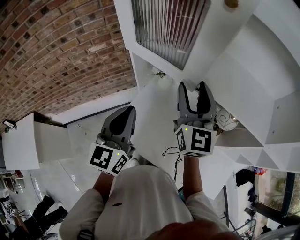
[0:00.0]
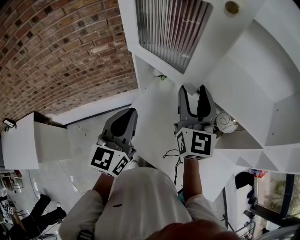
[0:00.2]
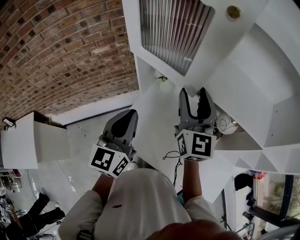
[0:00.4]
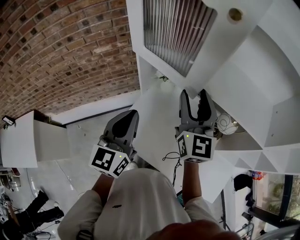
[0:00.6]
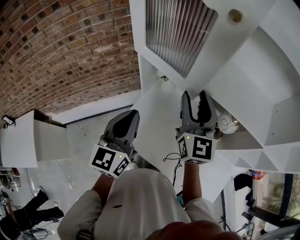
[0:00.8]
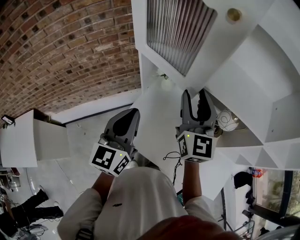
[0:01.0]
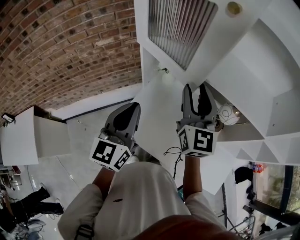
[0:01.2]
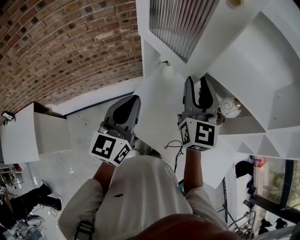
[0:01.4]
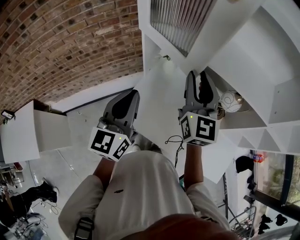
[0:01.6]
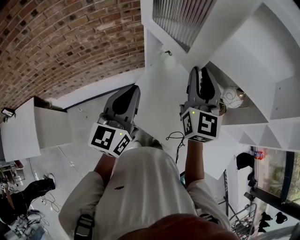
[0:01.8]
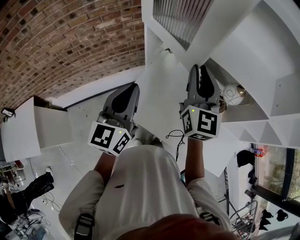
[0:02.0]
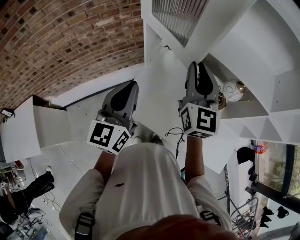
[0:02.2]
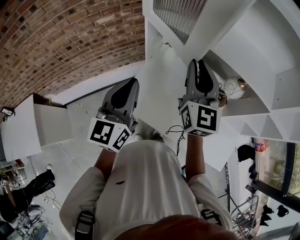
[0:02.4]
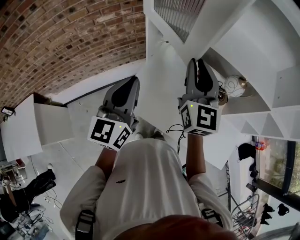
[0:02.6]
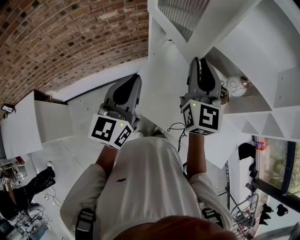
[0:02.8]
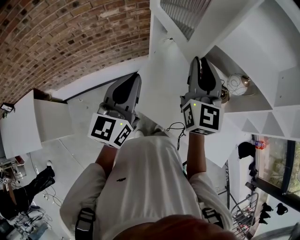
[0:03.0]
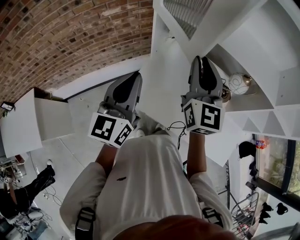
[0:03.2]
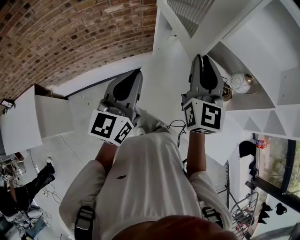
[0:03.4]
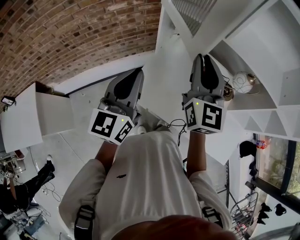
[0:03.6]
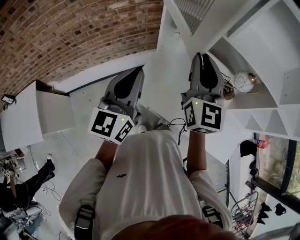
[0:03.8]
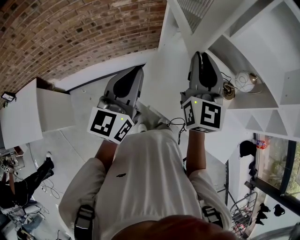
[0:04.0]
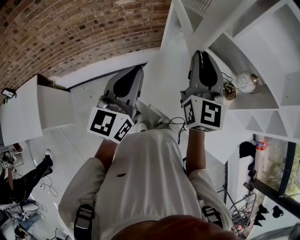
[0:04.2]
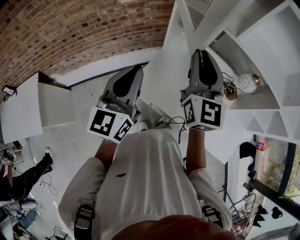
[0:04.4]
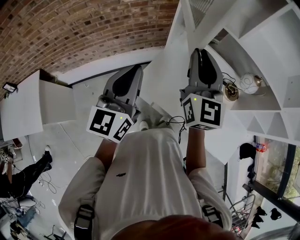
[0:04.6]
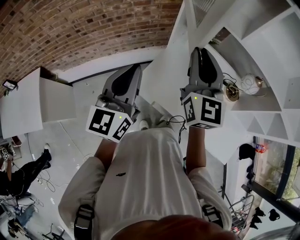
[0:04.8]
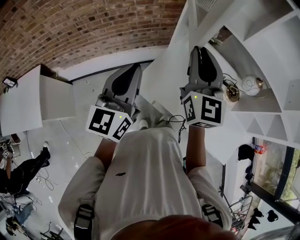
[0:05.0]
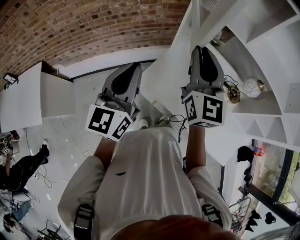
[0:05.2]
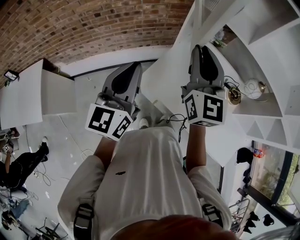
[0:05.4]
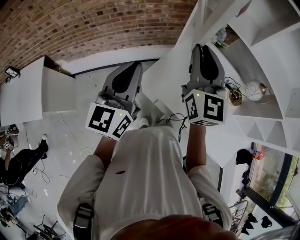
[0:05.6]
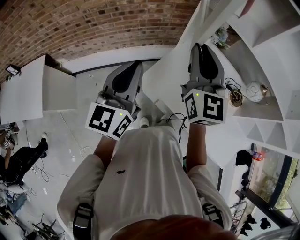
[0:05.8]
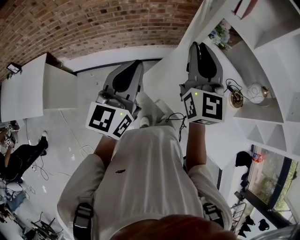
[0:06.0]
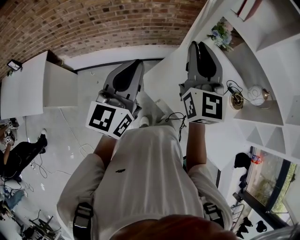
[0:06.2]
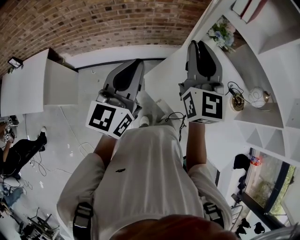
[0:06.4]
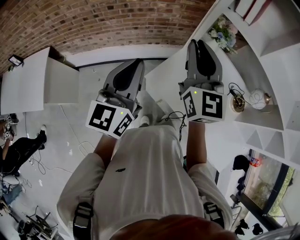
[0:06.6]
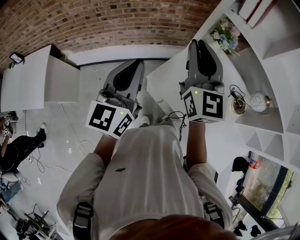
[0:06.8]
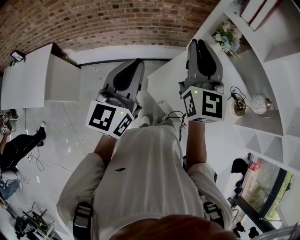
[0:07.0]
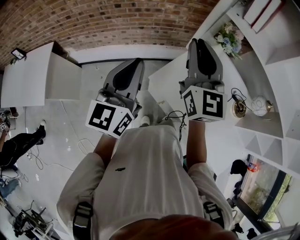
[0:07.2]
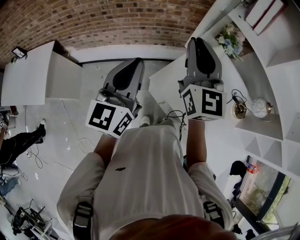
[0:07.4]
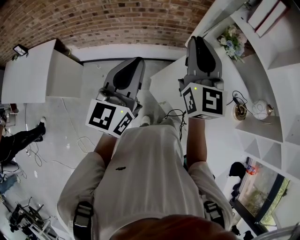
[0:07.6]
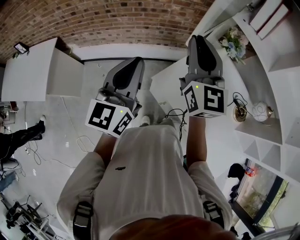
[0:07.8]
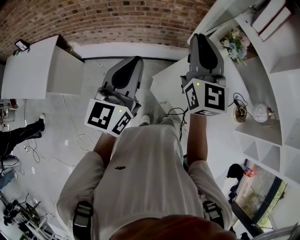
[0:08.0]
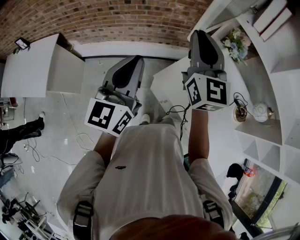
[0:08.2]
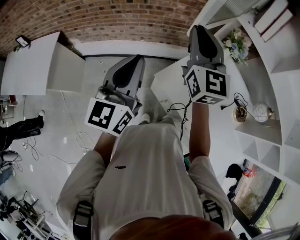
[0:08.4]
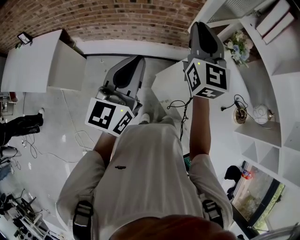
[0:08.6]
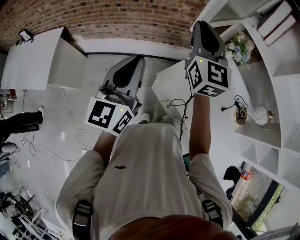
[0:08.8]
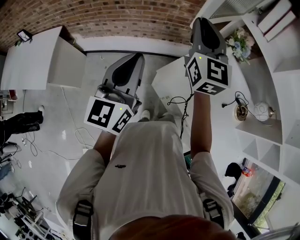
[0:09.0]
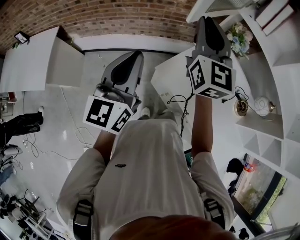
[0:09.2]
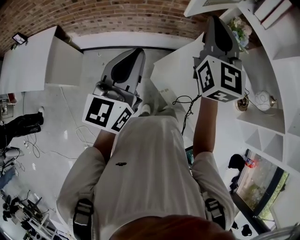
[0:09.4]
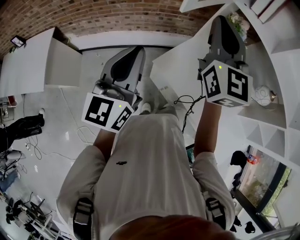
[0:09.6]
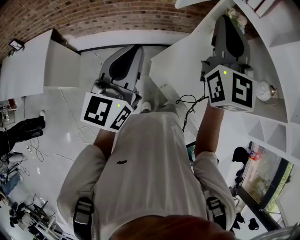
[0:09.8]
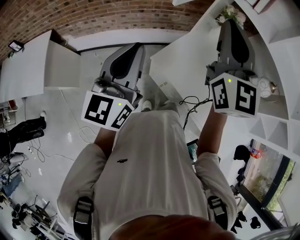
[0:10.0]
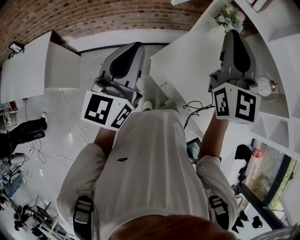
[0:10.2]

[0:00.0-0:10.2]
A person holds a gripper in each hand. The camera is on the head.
0:00.0 to 0:01.4: The right gripper ends up some 5 cm from where it was.
0:01.4 to 0:03.0: The right gripper shifts roughly 5 cm backward, and closes its fingers, while the left gripper ends up some 5 cm from where it was.
0:03.0 to 0:04.4: The right gripper goes some 5 cm to the left. The left gripper goes some 10 cm to the left and backward.
0:04.4 to 0:05.8: The grippers both shift to the left by approximately 5 cm.
0:05.8 to 0:07.2: The right gripper shifts approximately 5 cm to the left.
0:07.2 to 0:08.8: The right gripper heads to the left and forward, covering some 10 cm. Meanwhile the left gripper shifts by about 5 cm.
0:08.8 to 0:10.2: The left gripper moves approximately 5 cm, while the right gripper is displaced backward and to the right by approximately 15 cm.

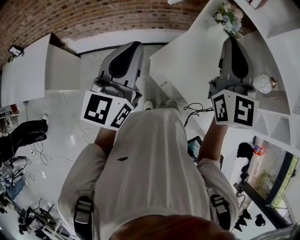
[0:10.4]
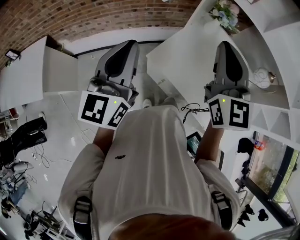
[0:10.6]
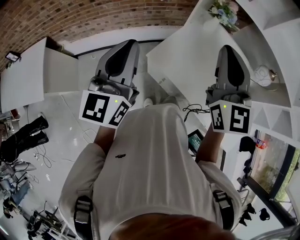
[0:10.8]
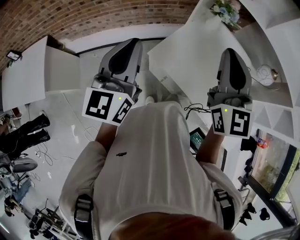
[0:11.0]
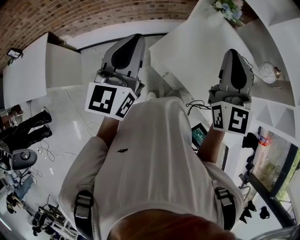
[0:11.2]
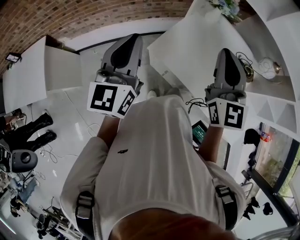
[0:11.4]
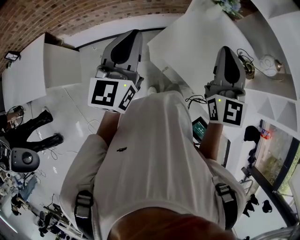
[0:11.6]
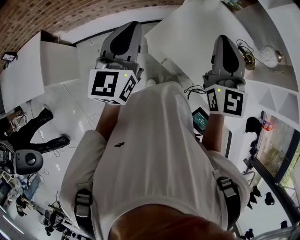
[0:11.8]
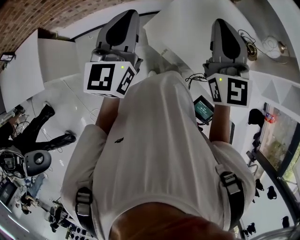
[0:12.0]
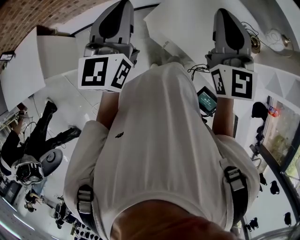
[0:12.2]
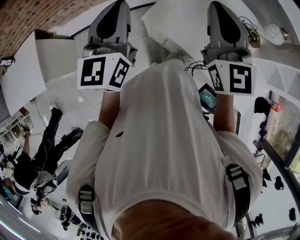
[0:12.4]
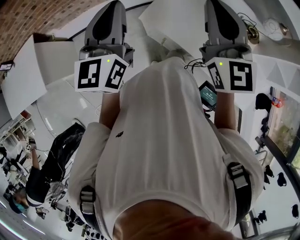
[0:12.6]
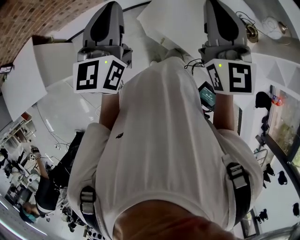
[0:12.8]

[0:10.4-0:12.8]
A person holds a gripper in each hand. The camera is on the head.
0:10.4 to 0:11.6: The left gripper moves approximately 5 cm. Meanwhile the right gripper is displaced downward by some 10 cm.
0:11.6 to 0:12.8: The grippers move only a little.

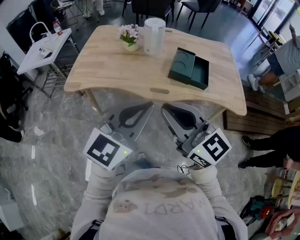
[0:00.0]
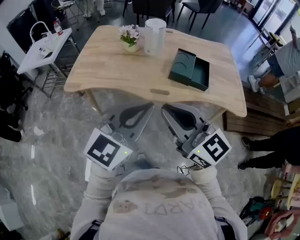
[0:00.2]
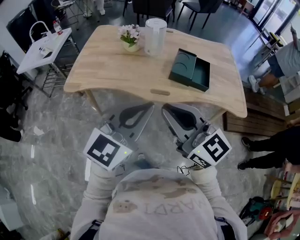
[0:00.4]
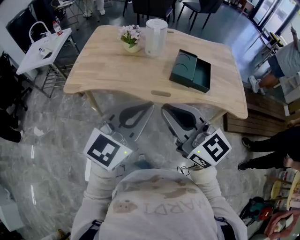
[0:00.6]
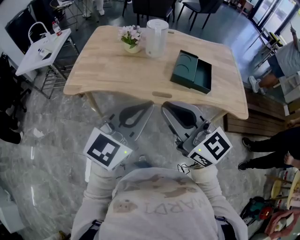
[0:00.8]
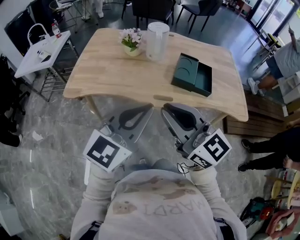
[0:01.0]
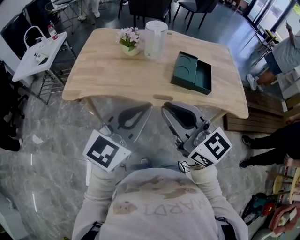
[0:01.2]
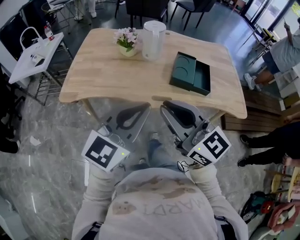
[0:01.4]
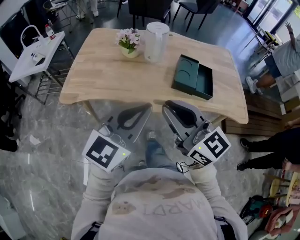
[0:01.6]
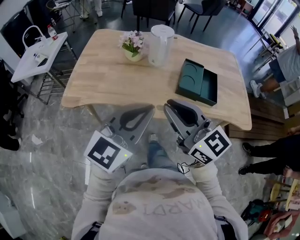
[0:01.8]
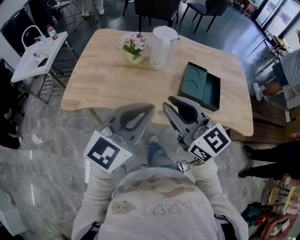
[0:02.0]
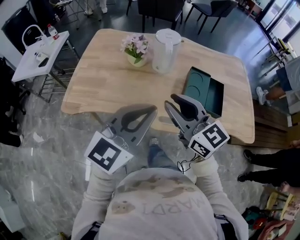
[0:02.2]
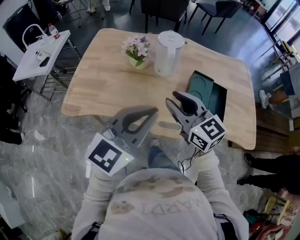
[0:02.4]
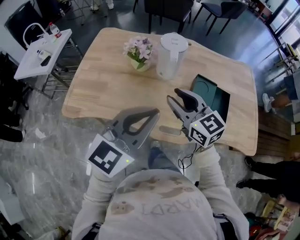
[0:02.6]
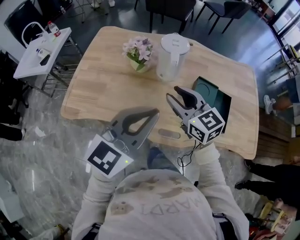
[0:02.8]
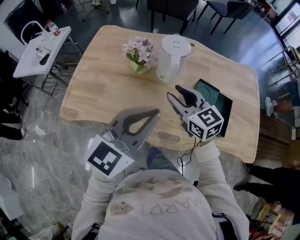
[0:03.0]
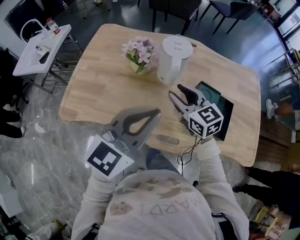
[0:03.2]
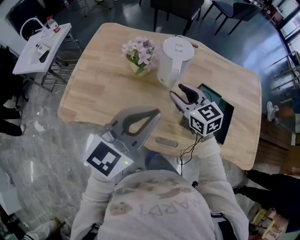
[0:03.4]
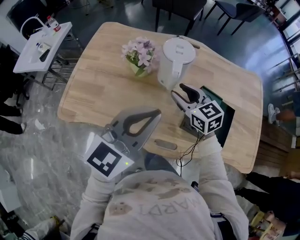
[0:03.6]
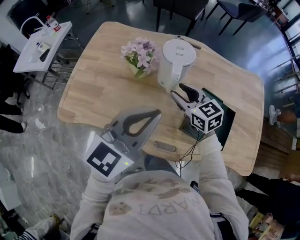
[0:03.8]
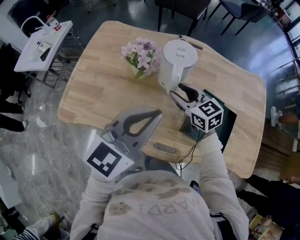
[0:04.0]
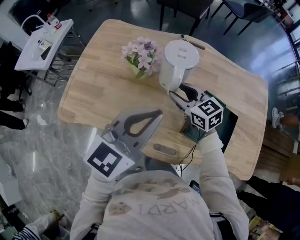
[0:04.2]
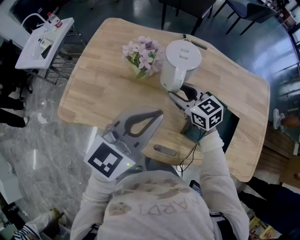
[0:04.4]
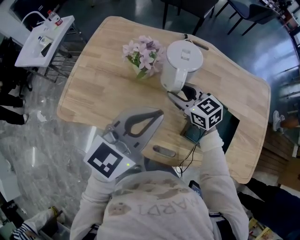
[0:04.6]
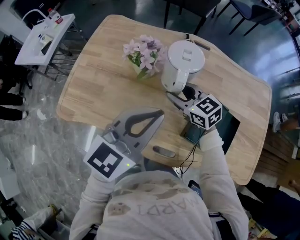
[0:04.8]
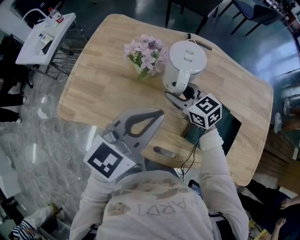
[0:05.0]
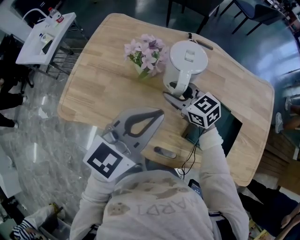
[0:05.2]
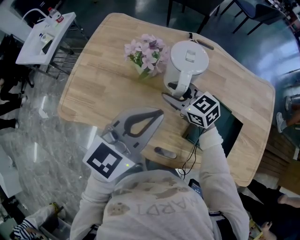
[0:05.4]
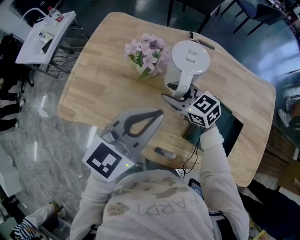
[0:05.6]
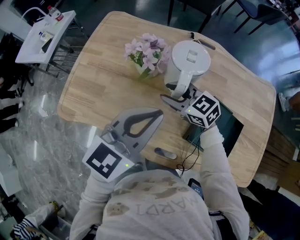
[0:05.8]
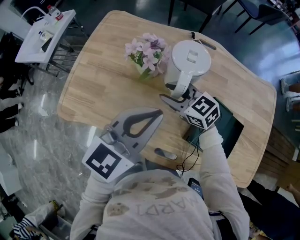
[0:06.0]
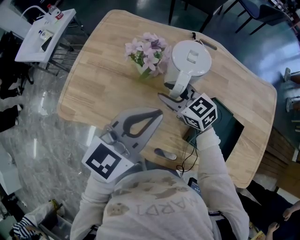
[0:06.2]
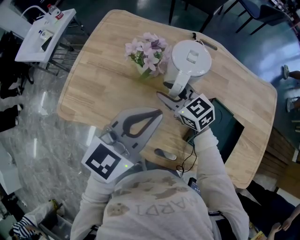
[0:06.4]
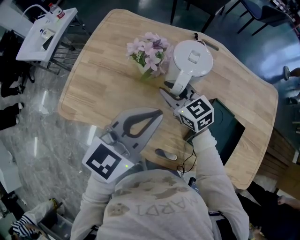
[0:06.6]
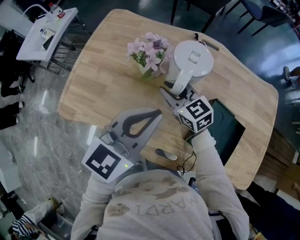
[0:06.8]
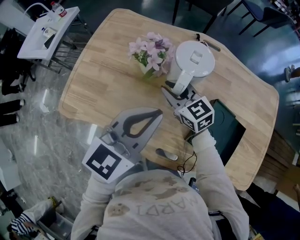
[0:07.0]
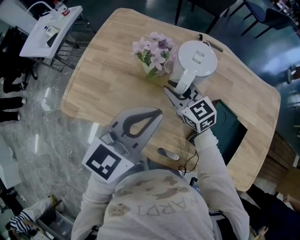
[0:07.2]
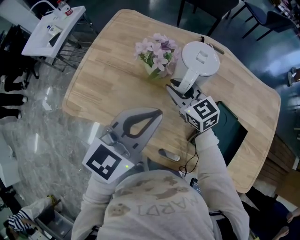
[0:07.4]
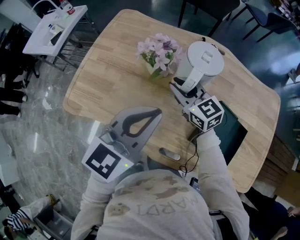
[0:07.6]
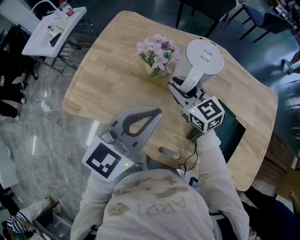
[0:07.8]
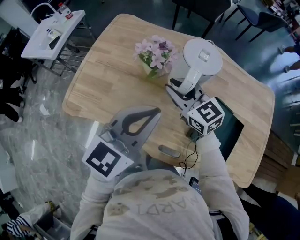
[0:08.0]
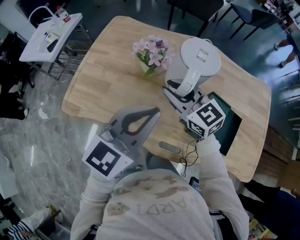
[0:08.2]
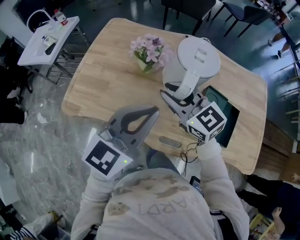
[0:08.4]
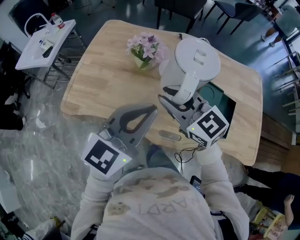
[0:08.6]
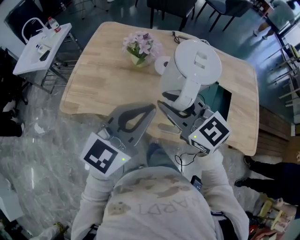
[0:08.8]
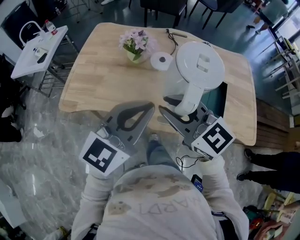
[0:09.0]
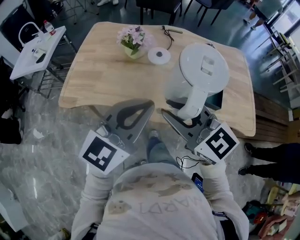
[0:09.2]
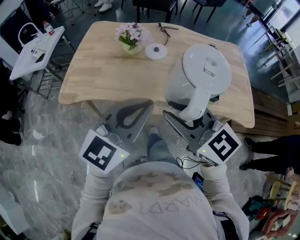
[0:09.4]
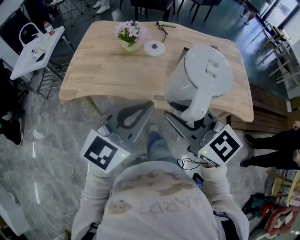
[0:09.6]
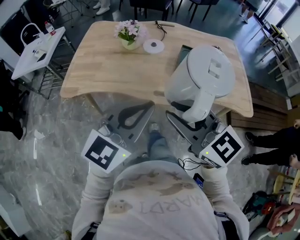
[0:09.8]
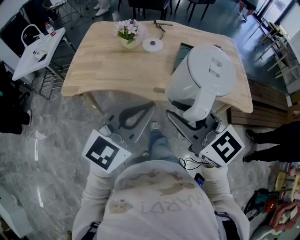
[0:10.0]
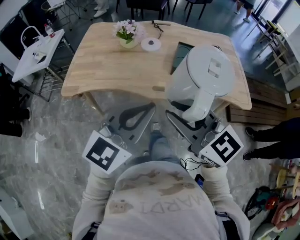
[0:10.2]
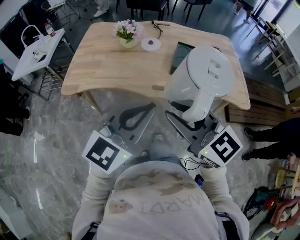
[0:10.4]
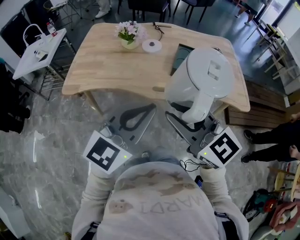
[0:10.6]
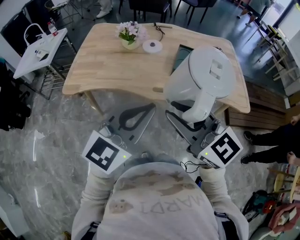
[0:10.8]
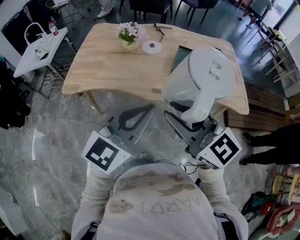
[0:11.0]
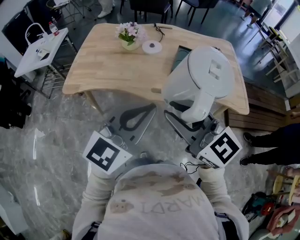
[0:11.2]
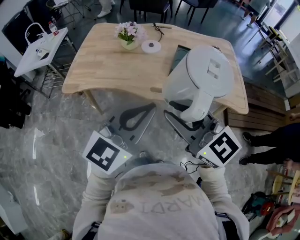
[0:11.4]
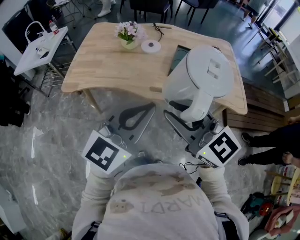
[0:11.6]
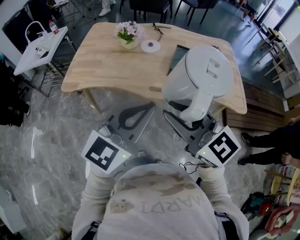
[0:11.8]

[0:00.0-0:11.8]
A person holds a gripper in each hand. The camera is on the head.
0:00.0 to 0:01.4: The grippers both shift forward by roughly 5 cm.
0:01.4 to 0:03.0: Both grippers move forward, approximately 30 cm. The right gripper opens up.
0:03.0 to 0:04.4: The left gripper travels forward by roughly 10 cm. Meanwhile the right gripper heads forward and downward, covering approximately 15 cm.
0:04.4 to 0:06.0: The right gripper moves to the left, roughly 5 cm.
0:06.0 to 0:07.4: The grippers stay close to where they were, moving slightly.
0:07.4 to 0:08.8: The left gripper moves backward, about 15 cm. The right gripper shifts roughly 30 cm backward and upward.
0:08.8 to 0:10.4: The grippers both shift backward by about 25 cm.
0:10.4 to 0:11.8: The grippers move only a little.
